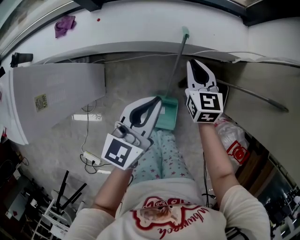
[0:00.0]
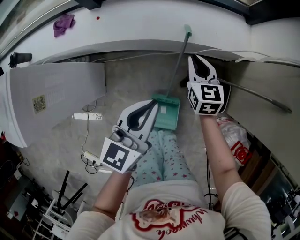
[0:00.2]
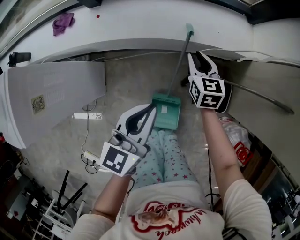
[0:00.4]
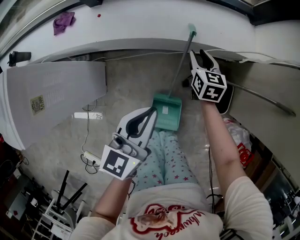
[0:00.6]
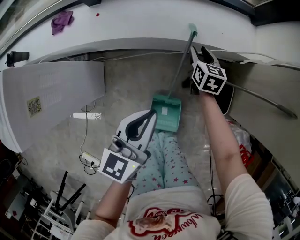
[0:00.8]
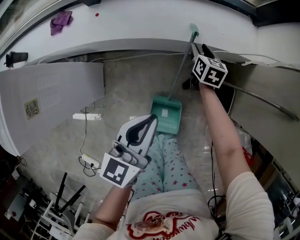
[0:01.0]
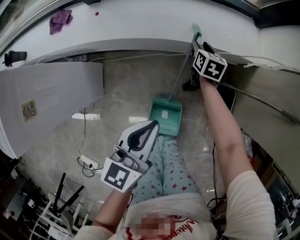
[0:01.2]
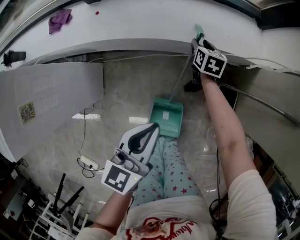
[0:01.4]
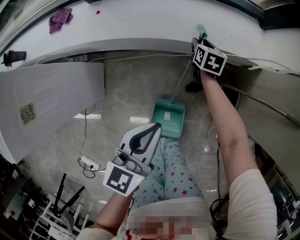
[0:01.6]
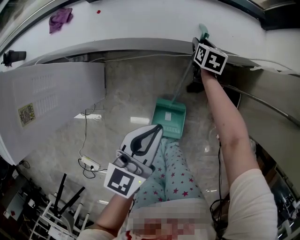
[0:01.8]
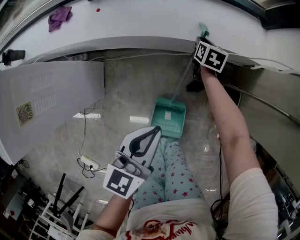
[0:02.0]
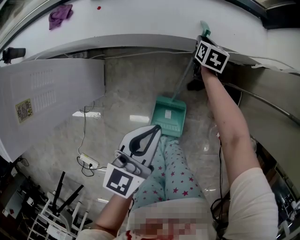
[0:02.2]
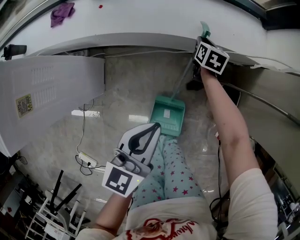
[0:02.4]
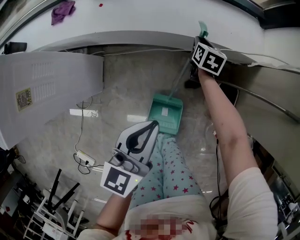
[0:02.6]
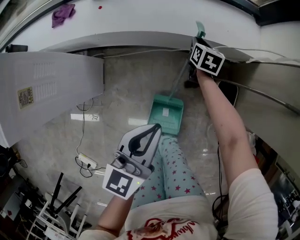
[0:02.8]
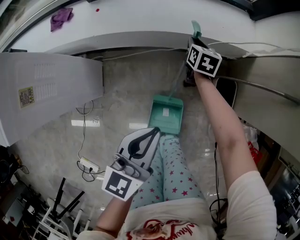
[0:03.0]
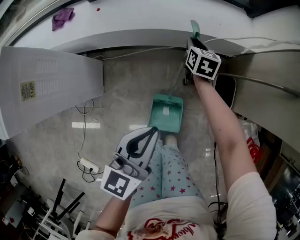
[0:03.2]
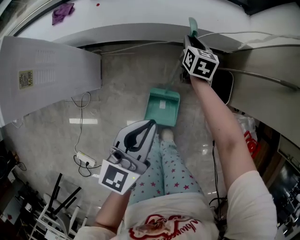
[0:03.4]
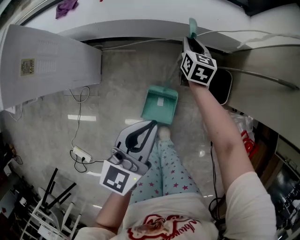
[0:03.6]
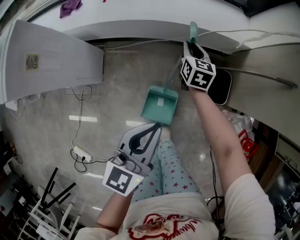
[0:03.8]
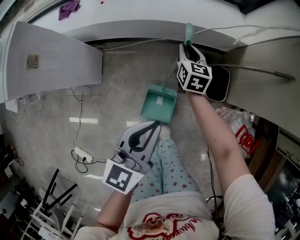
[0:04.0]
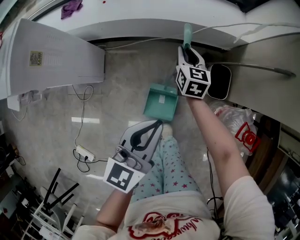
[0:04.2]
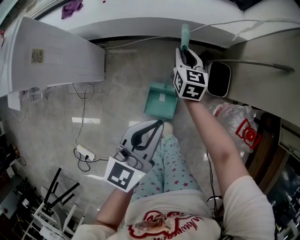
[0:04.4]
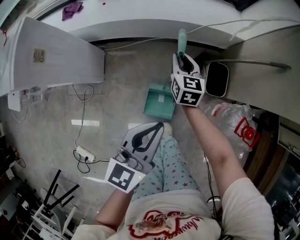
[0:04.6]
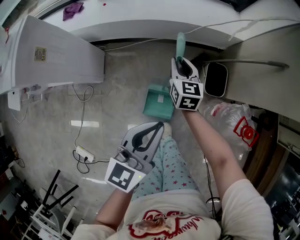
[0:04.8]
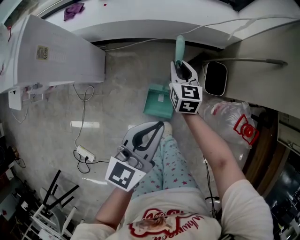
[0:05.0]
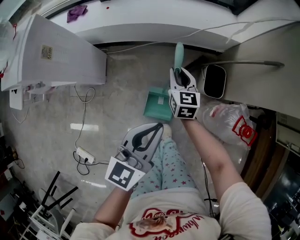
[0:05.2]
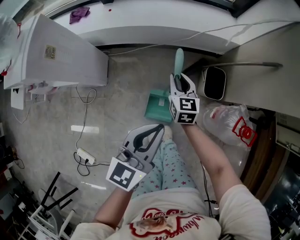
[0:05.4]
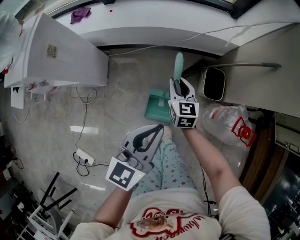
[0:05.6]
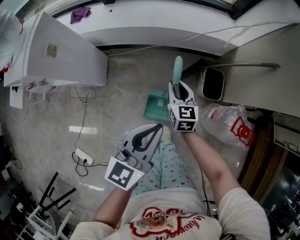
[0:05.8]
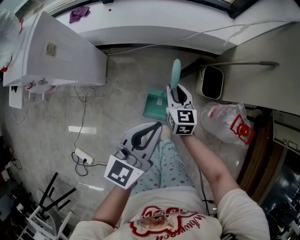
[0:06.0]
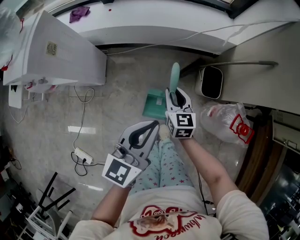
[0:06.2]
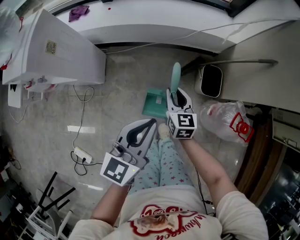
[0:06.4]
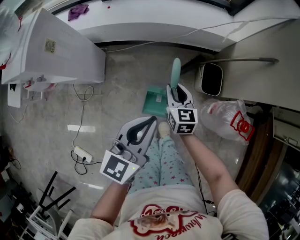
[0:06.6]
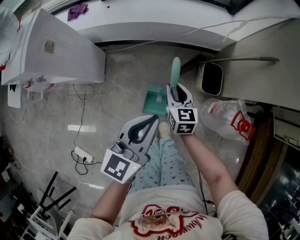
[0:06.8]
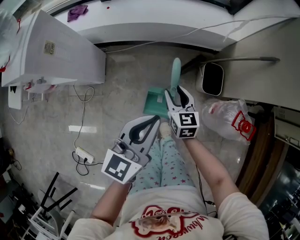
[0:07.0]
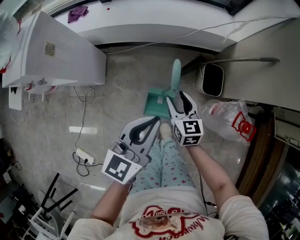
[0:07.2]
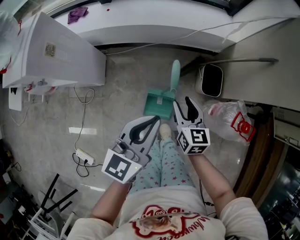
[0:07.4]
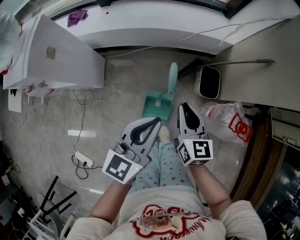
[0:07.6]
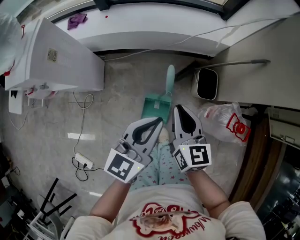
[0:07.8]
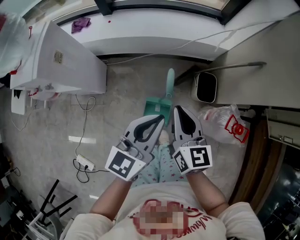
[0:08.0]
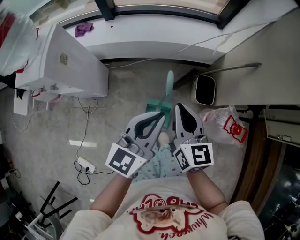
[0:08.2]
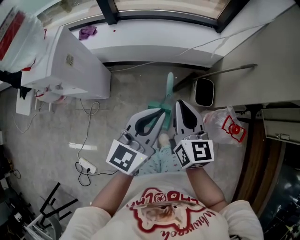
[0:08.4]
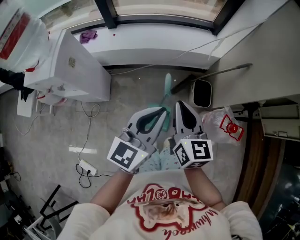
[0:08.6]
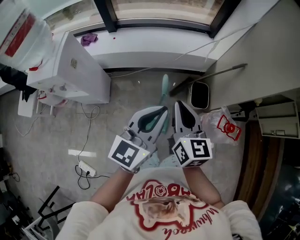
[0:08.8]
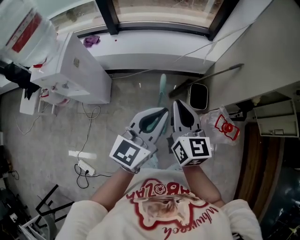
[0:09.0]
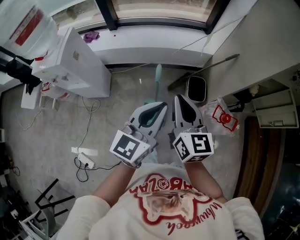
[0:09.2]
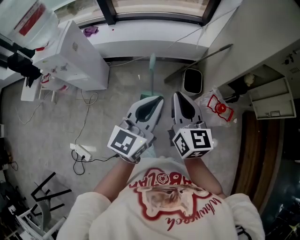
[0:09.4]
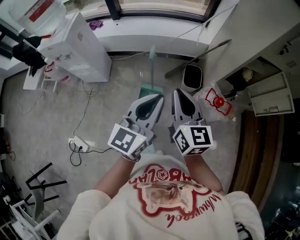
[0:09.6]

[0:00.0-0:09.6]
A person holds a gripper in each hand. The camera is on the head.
0:00.0 to 0:01.6: The left gripper travels downward by roughly 10 cm. Meanwhile the right gripper heads downward and forward, covering roughly 25 cm, swivels some 20 degrees, and opens its fingers.
0:01.6 to 0:03.2: The left gripper shifts about 10 cm backward. The right gripper travels backward and upward by about 10 cm, and closes up.
0:03.2 to 0:04.8: The right gripper travels backward and upward by approximately 20 cm. Meanwhile the left gripper is displaced backward, to the right and upward by about 15 cm.
0:04.8 to 0:06.4: The right gripper moves backward, about 15 cm. Meanwhile the left gripper ends up roughly 5 cm from where it was.
0:06.4 to 0:08.0: The right gripper moves upward, roughly 20 cm, and opens and closes again, while the left gripper shifts roughly 5 cm upward.
0:08.0 to 0:09.6: The left gripper is displaced backward, to the right and upward by approximately 30 cm. The right gripper travels backward, upward and to the right by about 30 cm.

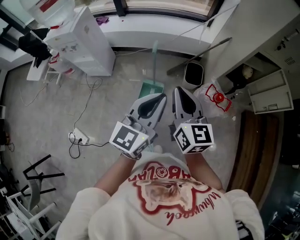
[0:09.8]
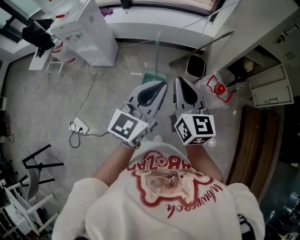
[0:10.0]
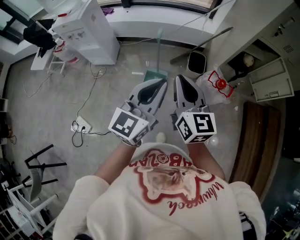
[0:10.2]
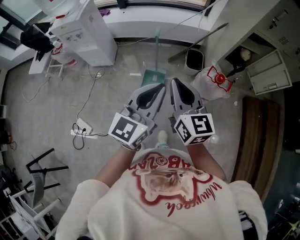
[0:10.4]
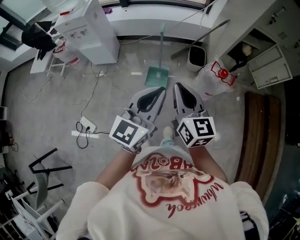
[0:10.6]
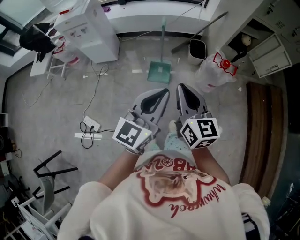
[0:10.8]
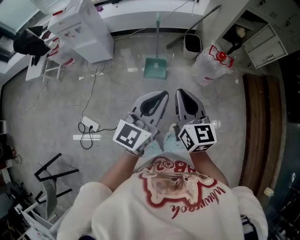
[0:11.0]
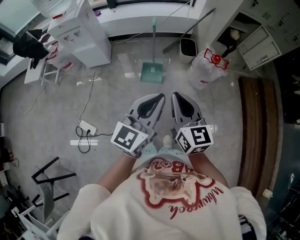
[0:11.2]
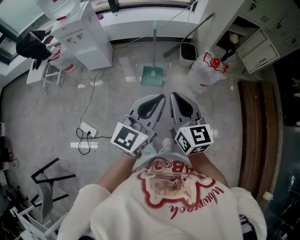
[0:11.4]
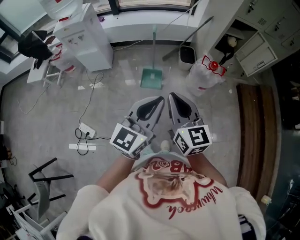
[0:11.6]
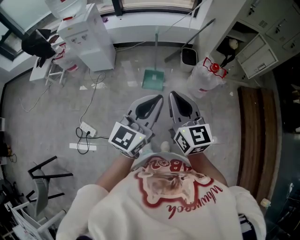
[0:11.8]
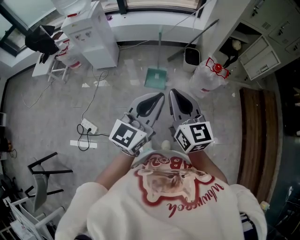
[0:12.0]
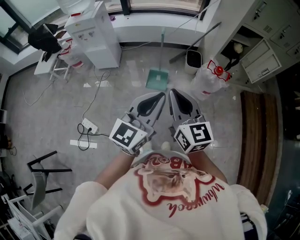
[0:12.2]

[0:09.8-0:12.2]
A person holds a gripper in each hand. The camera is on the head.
0:09.8 to 0:11.0: The two grippers go roughly 25 cm backward.
0:11.0 to 0:12.2: Both grippers move upward, roughly 5 cm.

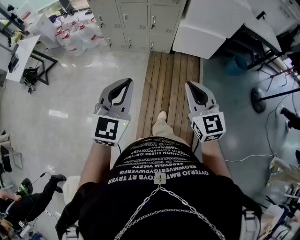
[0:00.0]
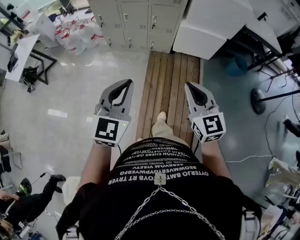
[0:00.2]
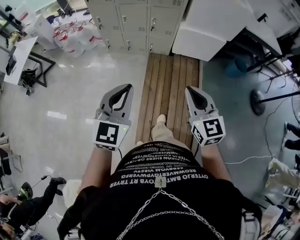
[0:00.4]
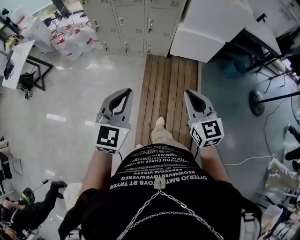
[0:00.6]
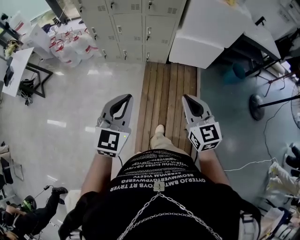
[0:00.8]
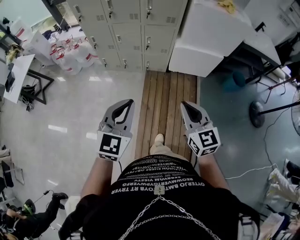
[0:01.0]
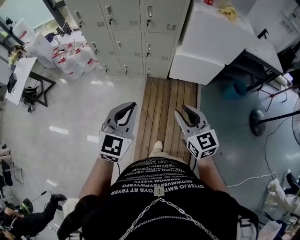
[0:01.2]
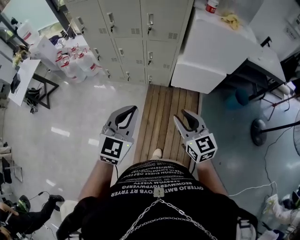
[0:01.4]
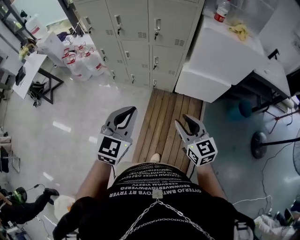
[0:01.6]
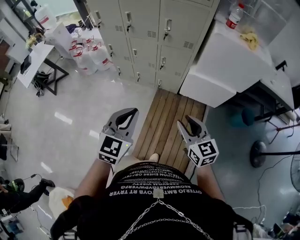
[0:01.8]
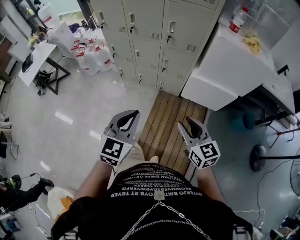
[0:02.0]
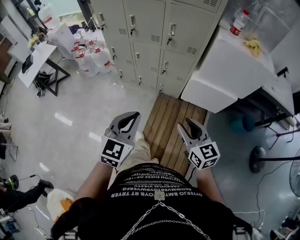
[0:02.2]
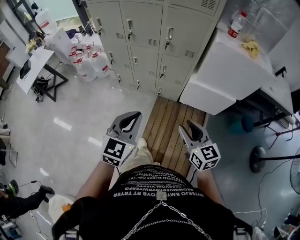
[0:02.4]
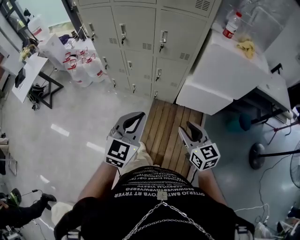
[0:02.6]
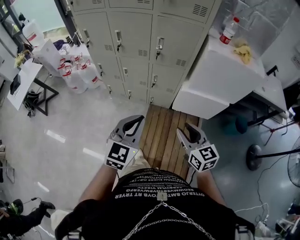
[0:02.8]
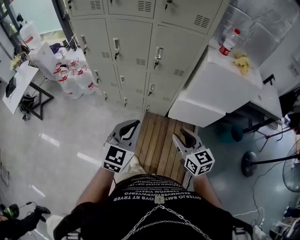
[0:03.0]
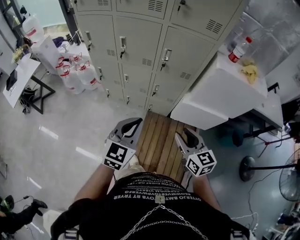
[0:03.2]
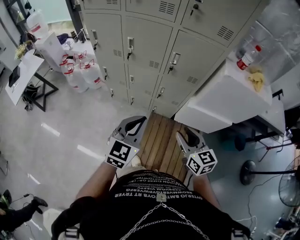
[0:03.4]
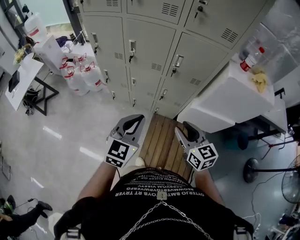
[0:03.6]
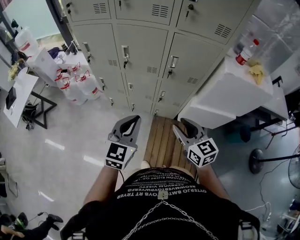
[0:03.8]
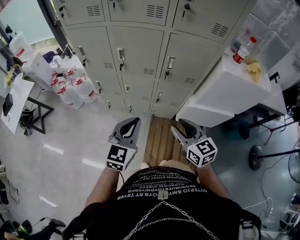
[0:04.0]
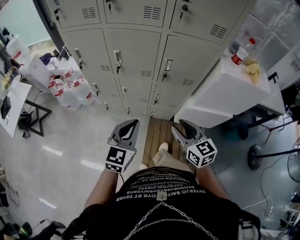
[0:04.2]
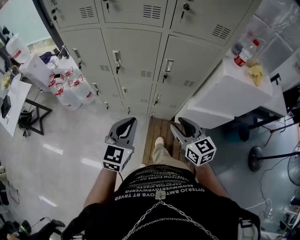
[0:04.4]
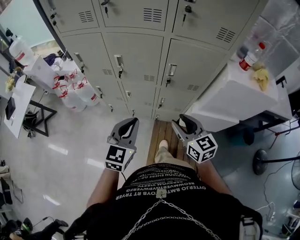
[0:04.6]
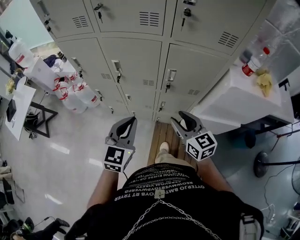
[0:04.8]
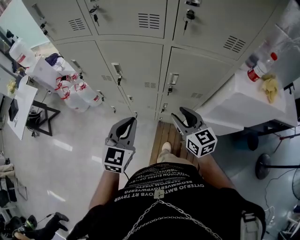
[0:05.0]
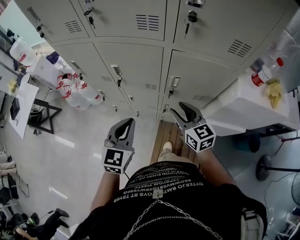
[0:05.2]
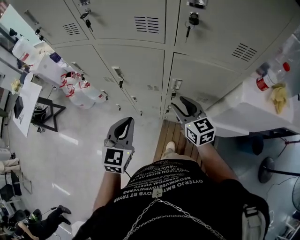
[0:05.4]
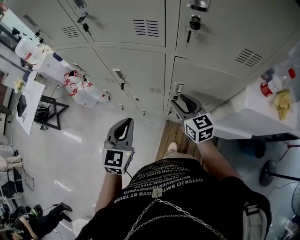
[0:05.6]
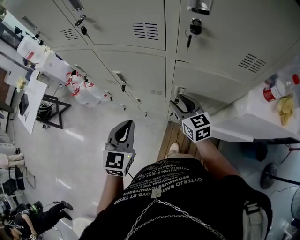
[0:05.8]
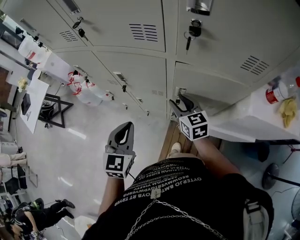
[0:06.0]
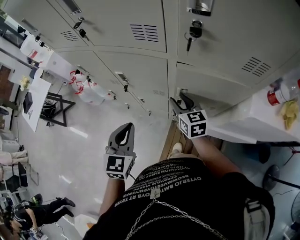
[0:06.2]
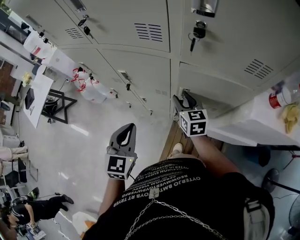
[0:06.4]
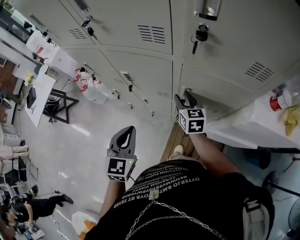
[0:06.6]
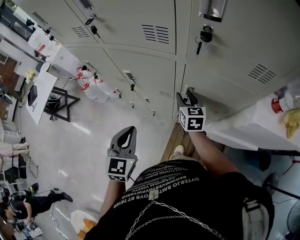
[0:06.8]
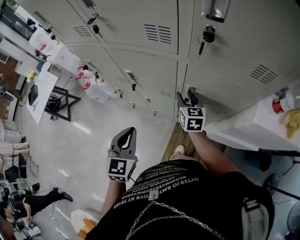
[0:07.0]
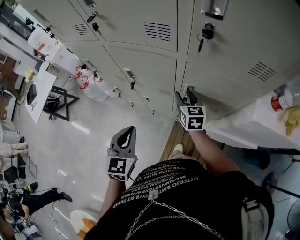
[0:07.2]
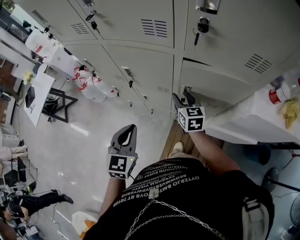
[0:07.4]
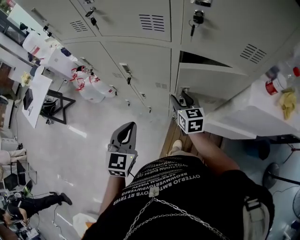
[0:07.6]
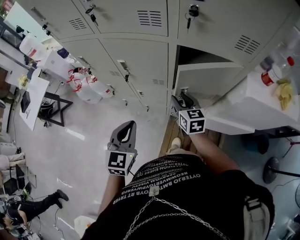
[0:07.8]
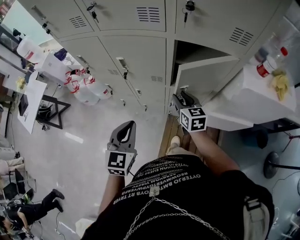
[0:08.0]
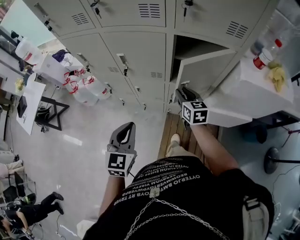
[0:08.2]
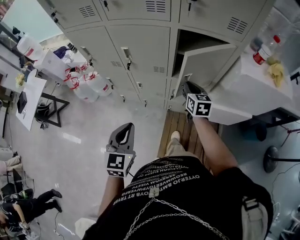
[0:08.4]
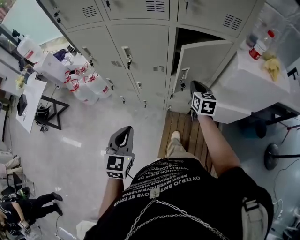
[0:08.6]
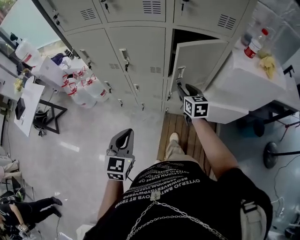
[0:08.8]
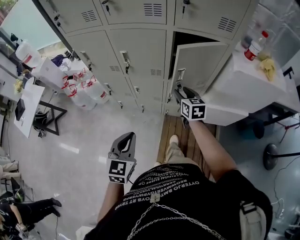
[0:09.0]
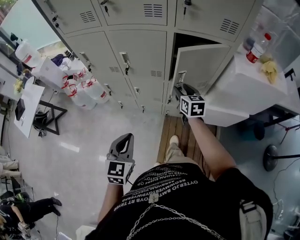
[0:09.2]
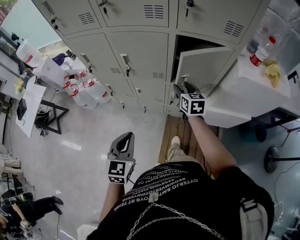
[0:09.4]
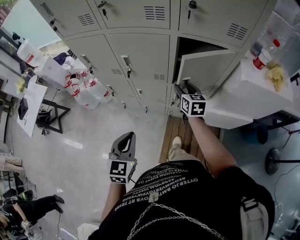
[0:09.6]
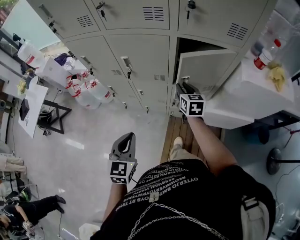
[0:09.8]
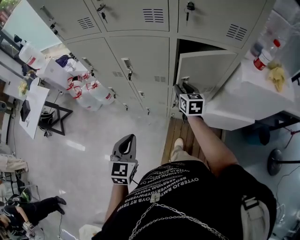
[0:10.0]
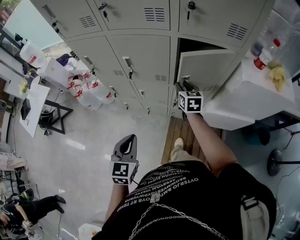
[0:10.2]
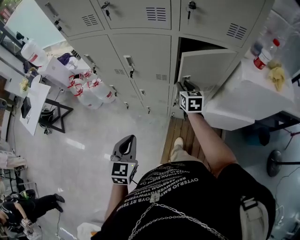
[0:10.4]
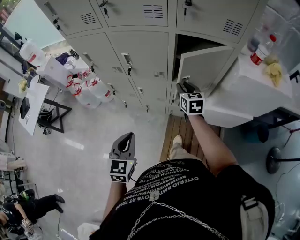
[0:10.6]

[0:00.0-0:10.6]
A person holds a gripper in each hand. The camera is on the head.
0:00.0 to 0:01.6: The two grippers go about 25 cm forward. The right gripper opens up.
0:01.6 to 0:03.0: The grippers both shift forward by about 15 cm.
0:03.0 to 0:04.6: The left gripper travels forward and to the left by roughly 20 cm. Meanwhile the right gripper moves forward, approximately 25 cm.
0:04.6 to 0:06.0: The left gripper travels forward by about 15 cm, while the right gripper moves forward, roughly 25 cm.
0:06.0 to 0:07.6: The left gripper ends up about 5 cm from where it was.
0:07.6 to 0:09.0: Both grippers move backward, about 15 cm. The right gripper closes, then reopens.
0:09.0 to 0:10.6: The right gripper goes about 5 cm forward.

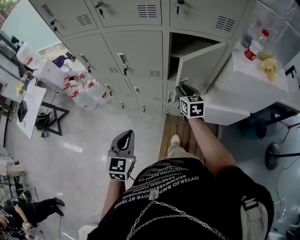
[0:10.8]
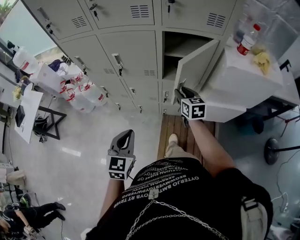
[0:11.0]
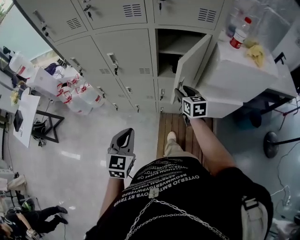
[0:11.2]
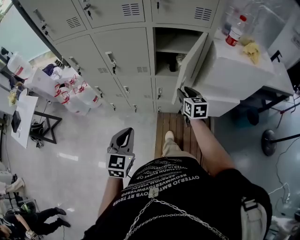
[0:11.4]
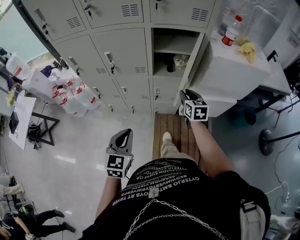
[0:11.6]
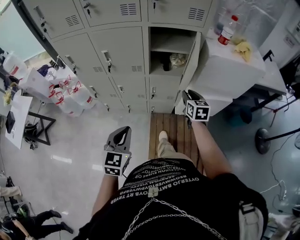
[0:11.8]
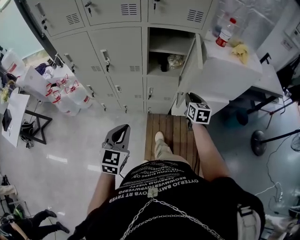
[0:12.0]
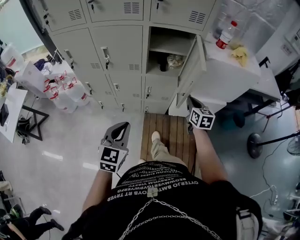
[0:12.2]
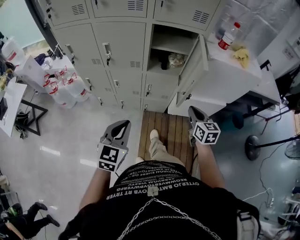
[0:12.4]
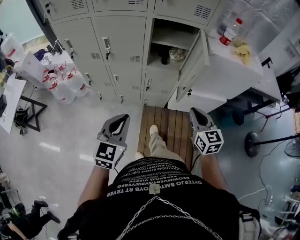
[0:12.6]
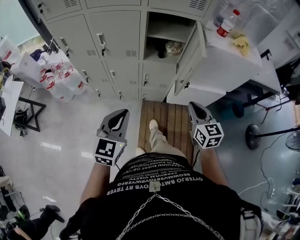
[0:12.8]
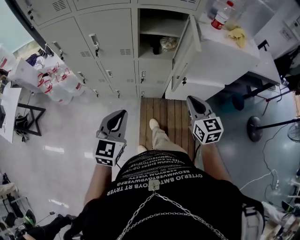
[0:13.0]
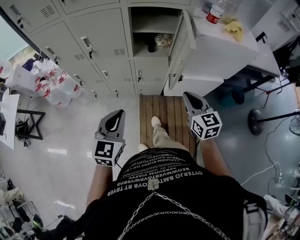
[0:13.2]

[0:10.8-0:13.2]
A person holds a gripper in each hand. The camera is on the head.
0:10.8 to 0:12.0: The left gripper moves backward, some 5 cm. Meanwhile the right gripper shifts some 20 cm to the right and backward.
0:12.0 to 0:13.2: The right gripper is displaced backward and upward by approximately 10 cm.
